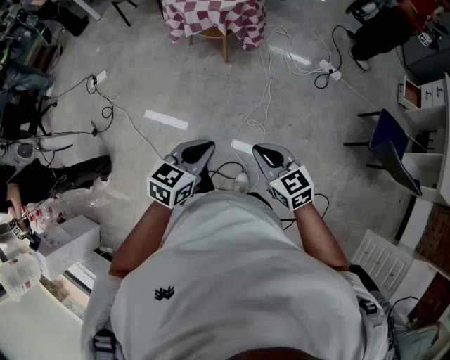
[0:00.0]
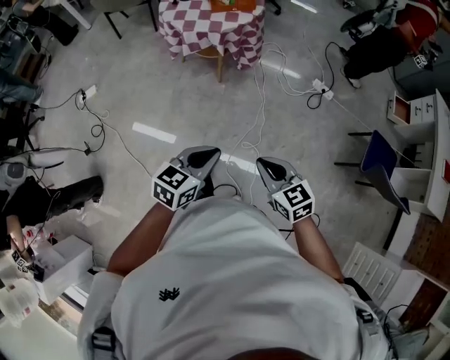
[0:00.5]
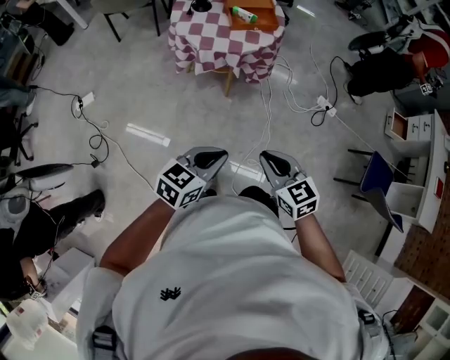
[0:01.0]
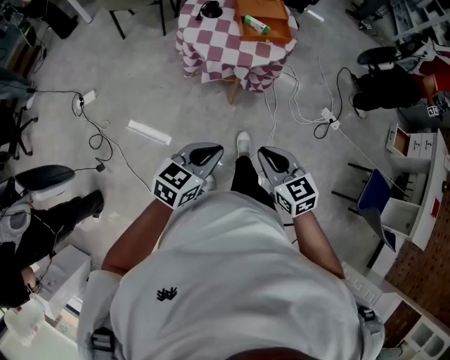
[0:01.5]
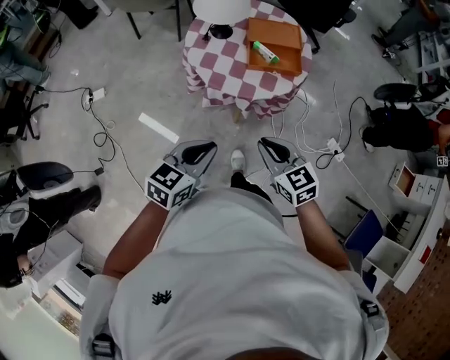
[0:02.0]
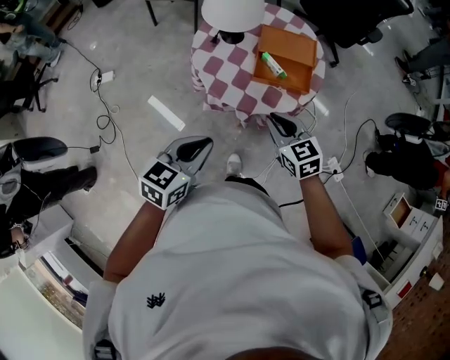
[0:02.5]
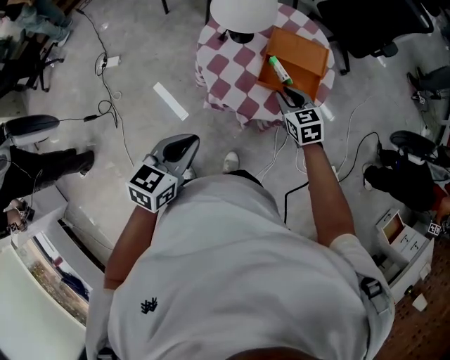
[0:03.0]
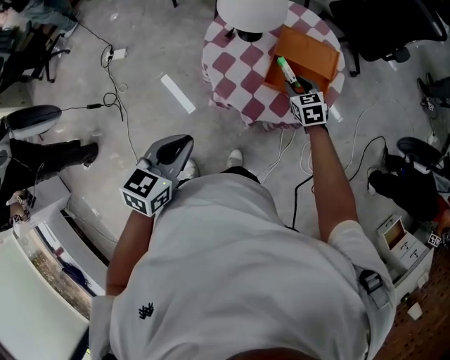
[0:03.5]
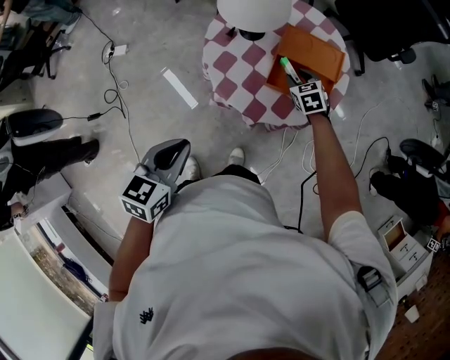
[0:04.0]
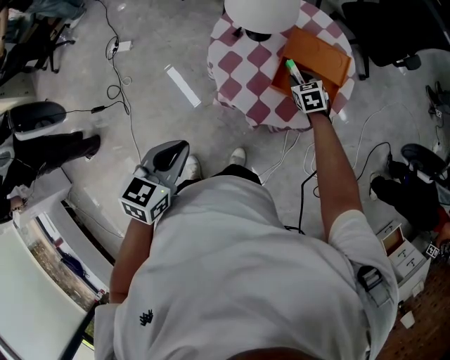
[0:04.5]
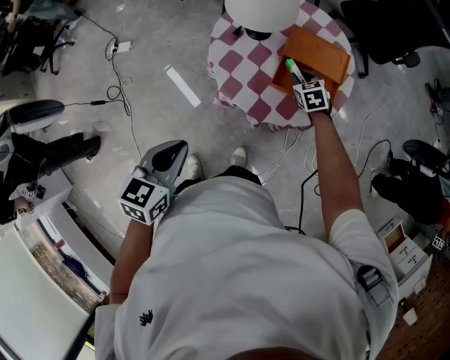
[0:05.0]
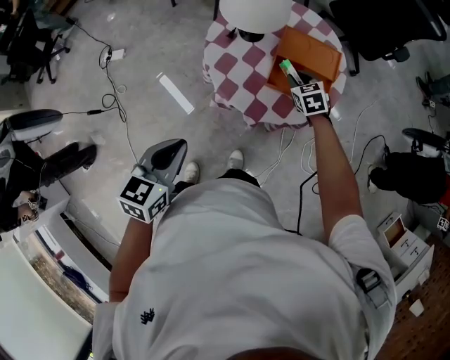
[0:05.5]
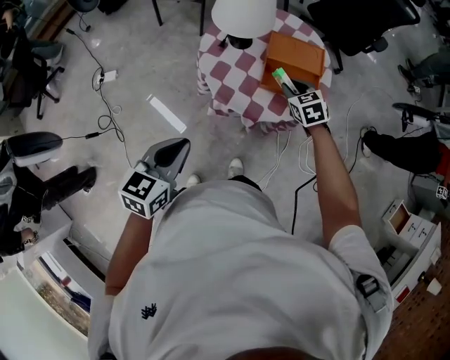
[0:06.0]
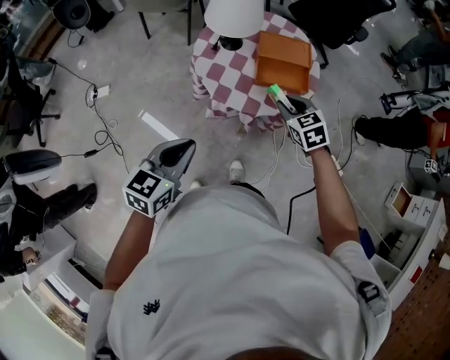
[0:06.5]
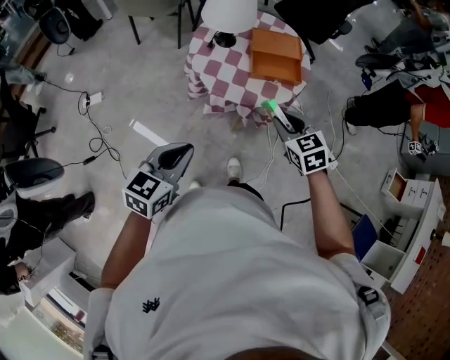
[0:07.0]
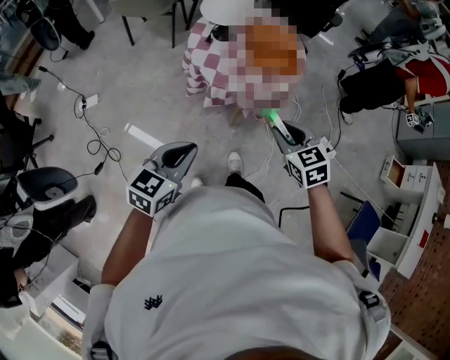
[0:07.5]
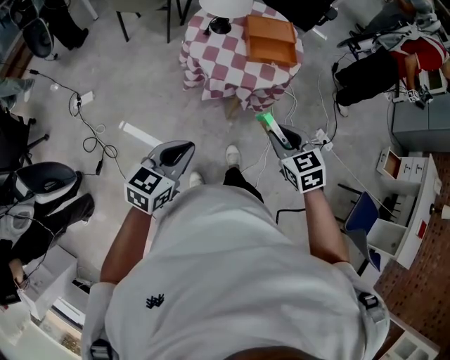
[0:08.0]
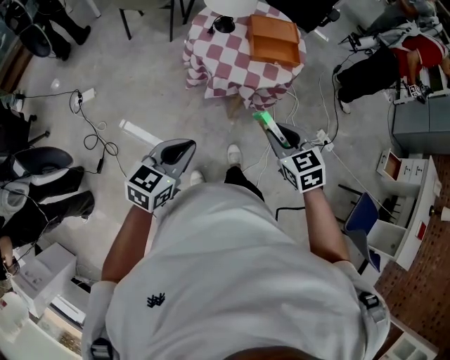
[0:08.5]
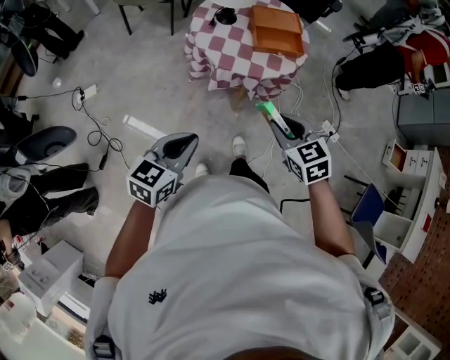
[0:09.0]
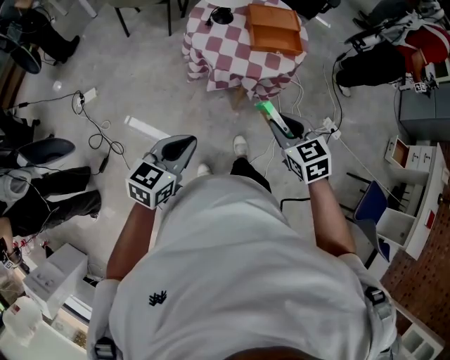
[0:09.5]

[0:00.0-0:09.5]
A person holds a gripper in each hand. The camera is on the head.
0:00.0 to 0:02.0: The two grippers travel together, forward, about 60 cm.
0:02.0 to 0:04.0: The right gripper is displaced forward and downward by roughly 40 cm, changes its angle by about 20 degrees, and opens its fingers. Meanwhile the left gripper goes about 10 cm forward, and changes its angle by some 30 degrees.
0:04.0 to 0:05.5: The grippers move only a little.
0:05.5 to 0:07.5: The right gripper moves backward and upward, approximately 40 cm. Meanwhile the left gripper shifts about 15 cm backward and to the left, and swivels approximately 30 degrees.
0:07.5 to 0:09.5: The right gripper ends up approximately 5 cm from where it was.

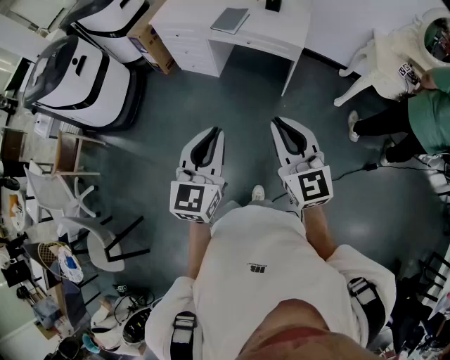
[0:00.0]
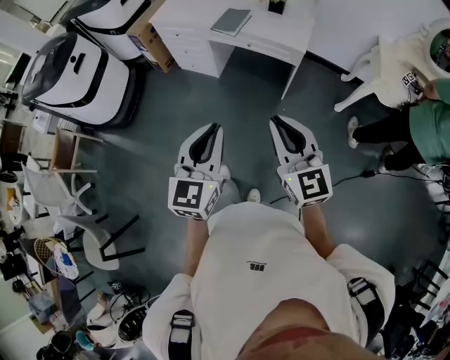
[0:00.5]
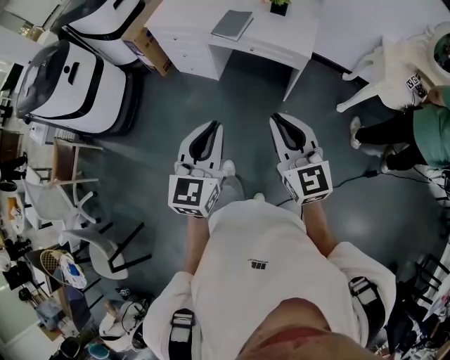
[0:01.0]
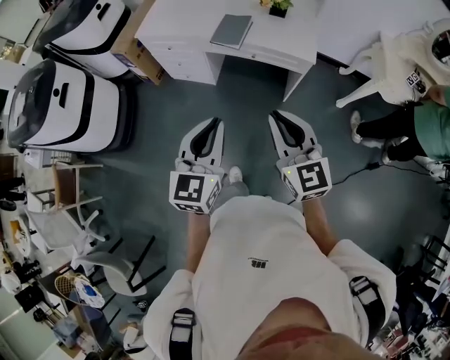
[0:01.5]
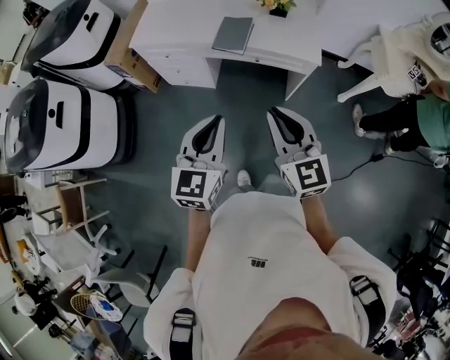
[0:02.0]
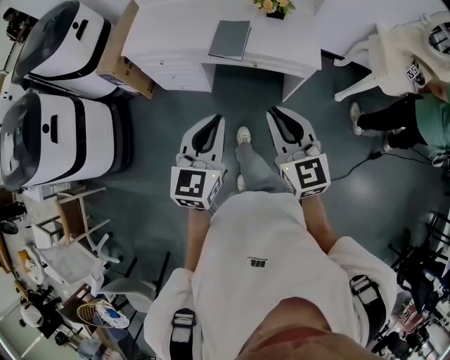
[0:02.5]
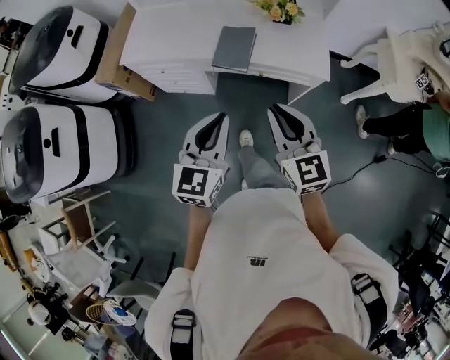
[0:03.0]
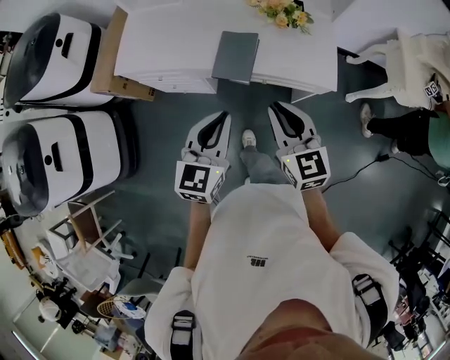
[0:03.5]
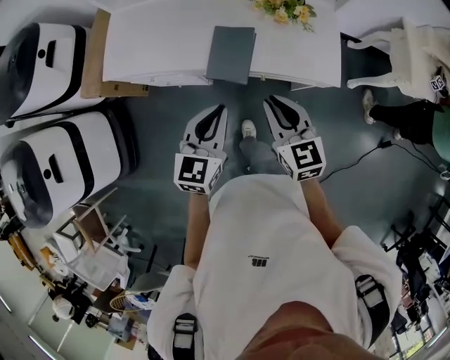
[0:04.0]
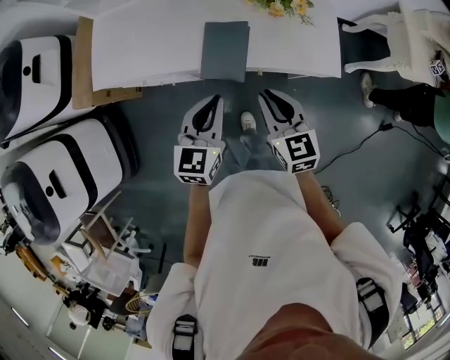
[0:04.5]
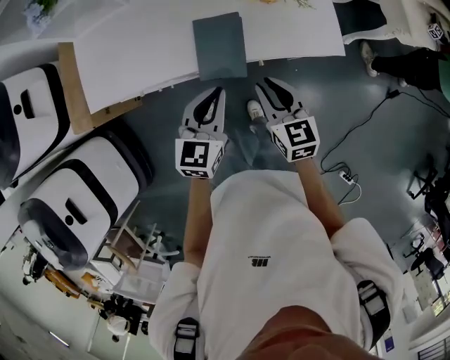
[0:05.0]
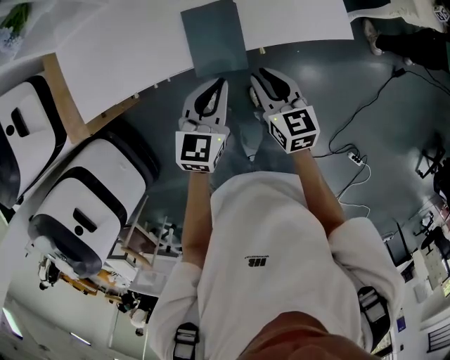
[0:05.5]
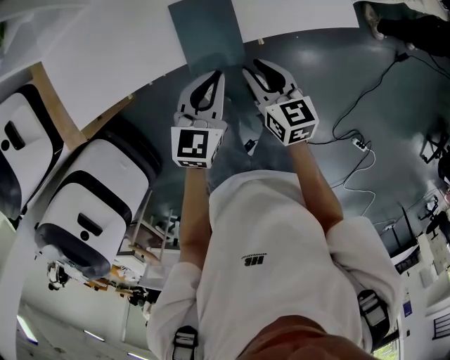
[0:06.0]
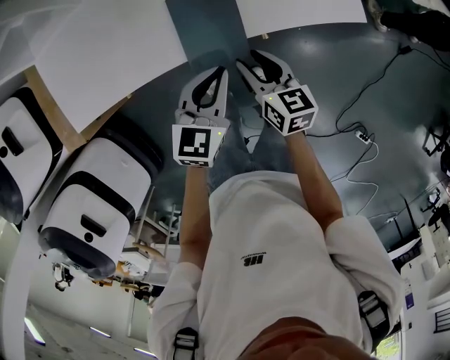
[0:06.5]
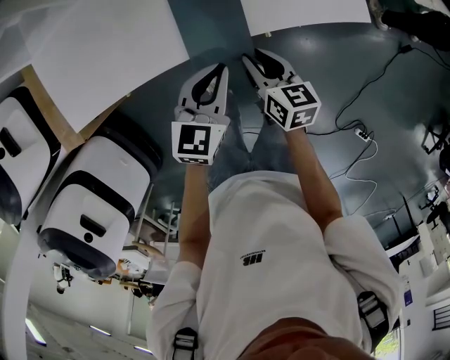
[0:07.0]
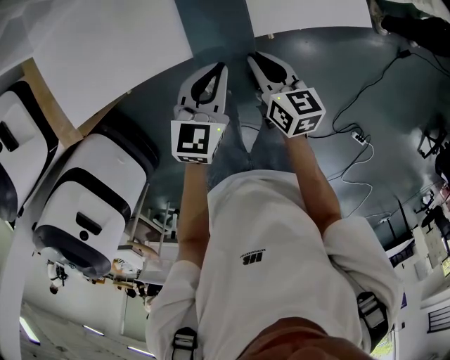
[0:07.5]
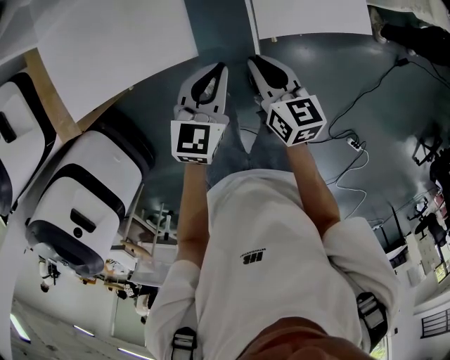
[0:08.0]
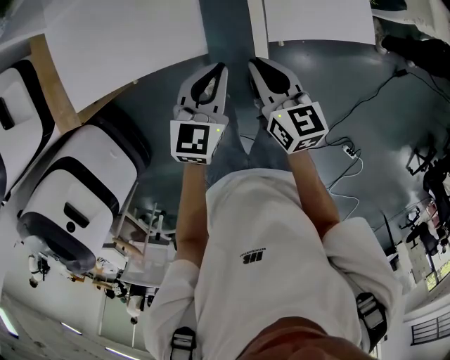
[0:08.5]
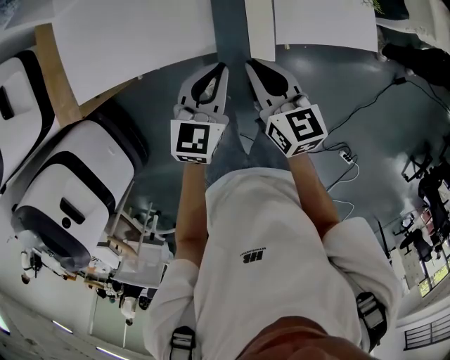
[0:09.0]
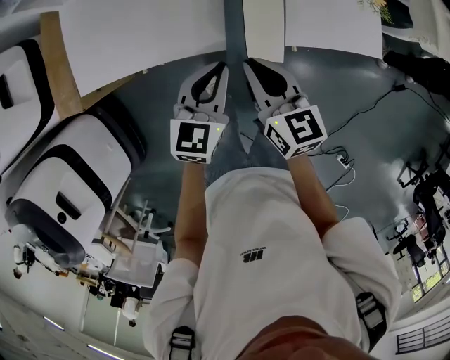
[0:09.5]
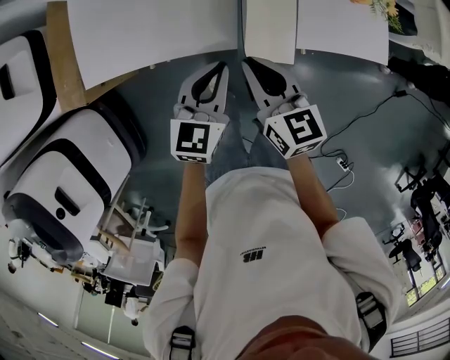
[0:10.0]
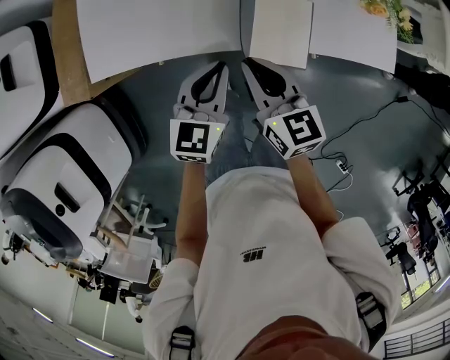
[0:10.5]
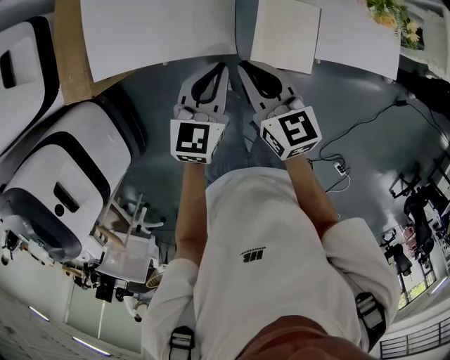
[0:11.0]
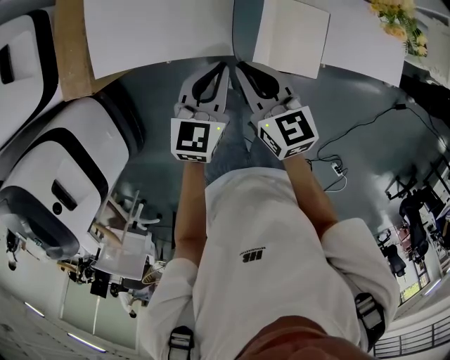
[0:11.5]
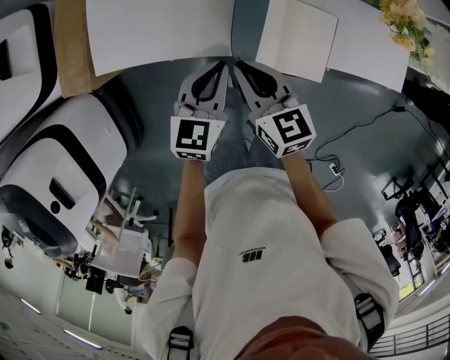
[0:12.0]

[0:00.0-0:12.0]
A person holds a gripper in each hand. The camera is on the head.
0:00.0 to 0:02.0: The right gripper is displaced forward and to the left by roughly 35 cm; the left gripper heads forward, covering about 35 cm.
0:02.0 to 0:04.0: The right gripper shifts approximately 35 cm forward and downward, while the left gripper is displaced forward by about 35 cm.
0:04.0 to 0:06.0: The left gripper moves downward and forward, some 20 cm, and changes its angle by roughly 20 degrees. The right gripper travels downward by some 20 cm, and changes its angle by approximately 30 degrees.
0:06.0 to 0:08.0: The grippers make only small movements.
0:08.0 to 0:10.0: The left gripper travels to the left by roughly 10 cm. The right gripper travels to the left and upward by about 15 cm.
0:10.0 to 0:12.0: Both grippers move to the left, some 10 cm.

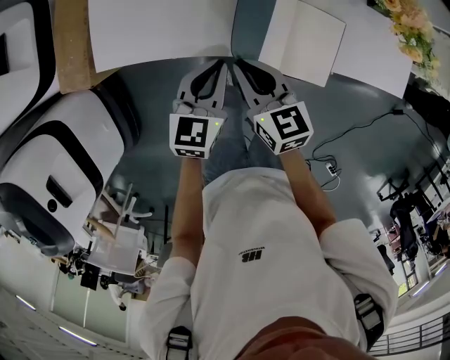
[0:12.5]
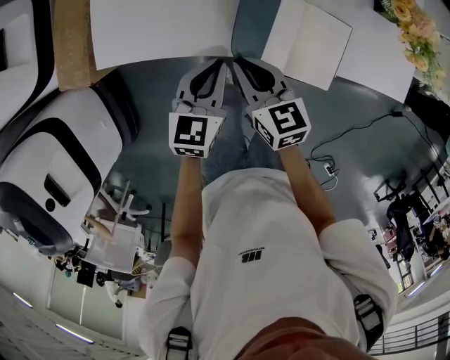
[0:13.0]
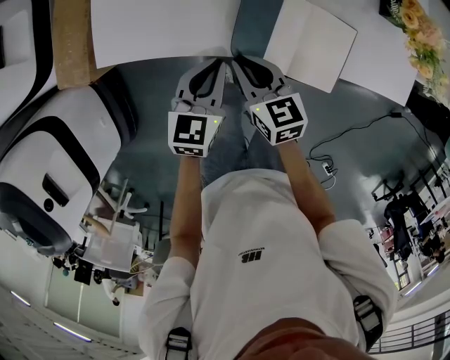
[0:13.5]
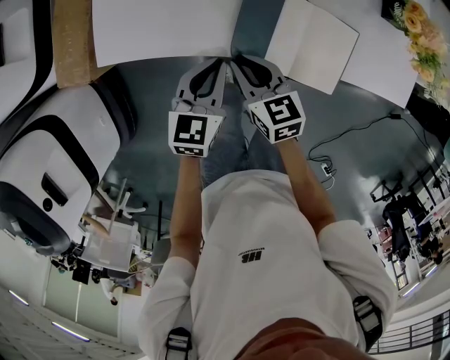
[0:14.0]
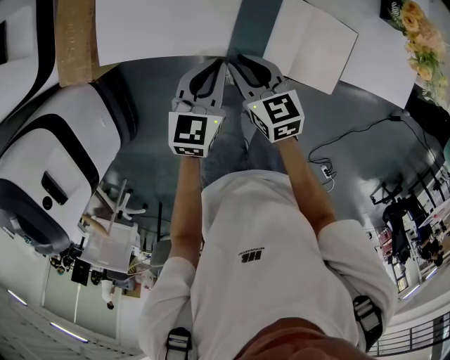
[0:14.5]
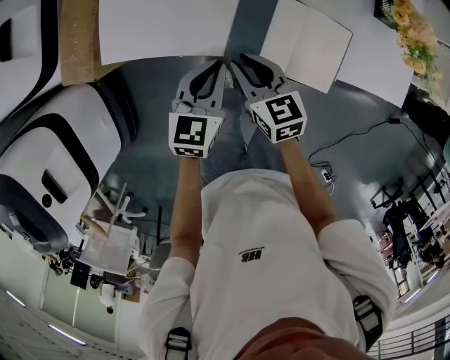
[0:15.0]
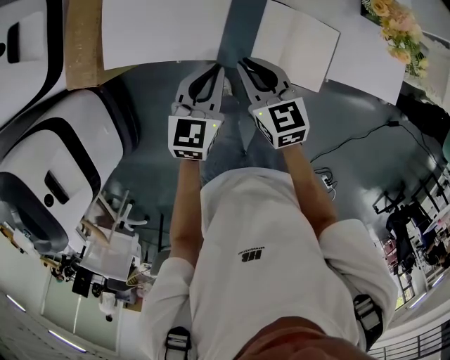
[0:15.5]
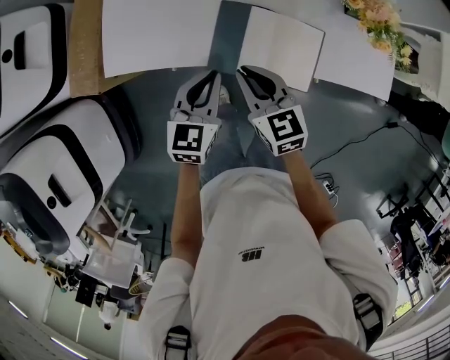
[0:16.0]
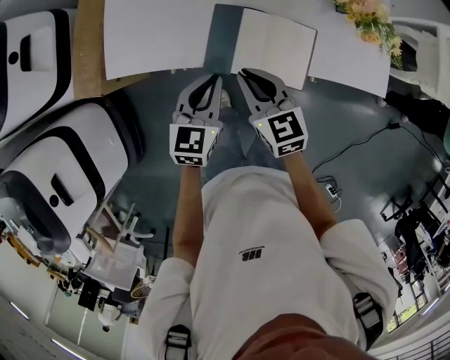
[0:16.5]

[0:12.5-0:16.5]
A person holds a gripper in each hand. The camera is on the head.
0:12.5 to 0:14.5: The right gripper shifts roughly 5 cm downward.
0:14.5 to 0:16.5: The two grippers go approximately 10 cm upward and to the right.

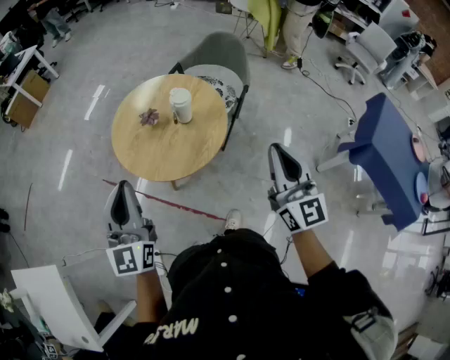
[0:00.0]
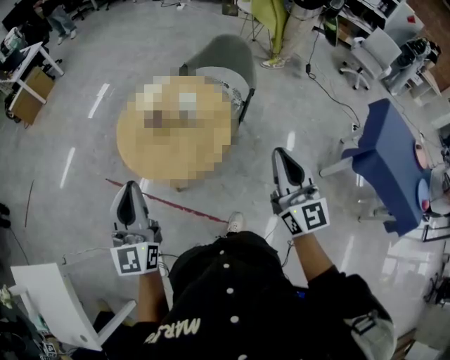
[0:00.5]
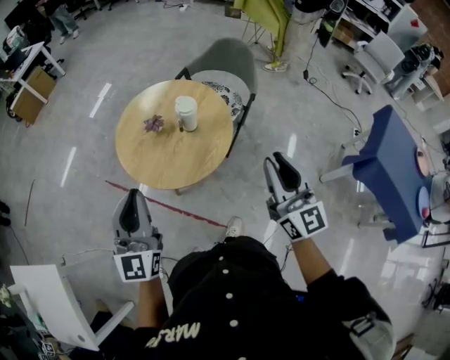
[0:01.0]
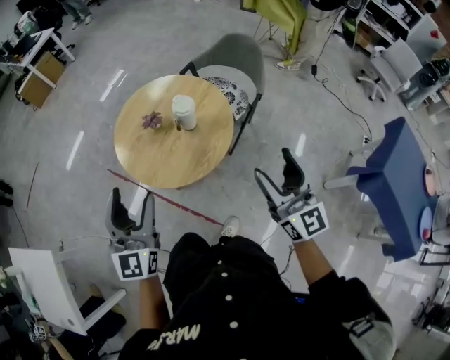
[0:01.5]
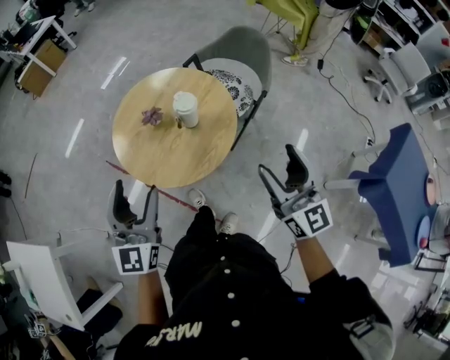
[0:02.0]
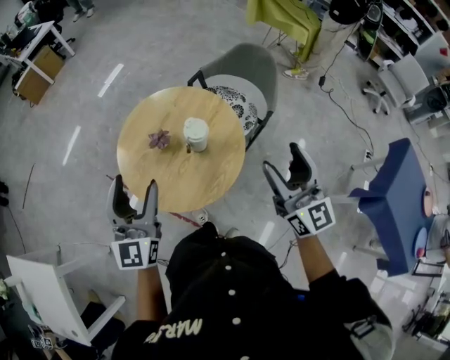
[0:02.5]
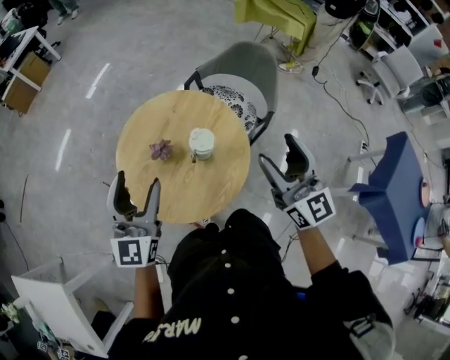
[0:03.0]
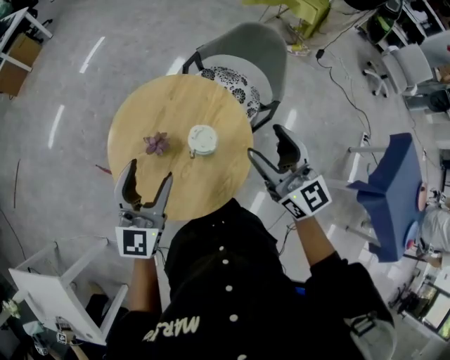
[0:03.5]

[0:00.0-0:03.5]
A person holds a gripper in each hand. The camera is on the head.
0:00.0 to 0:02.0: The grippers both shift forward and to the right by roughly 10 cm. The left gripper opens its fingers, while the right gripper opens its fingers.
0:02.0 to 0:03.5: Both grippers travel together forward, approximately 25 cm.
